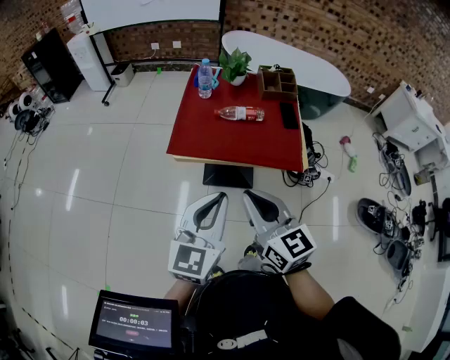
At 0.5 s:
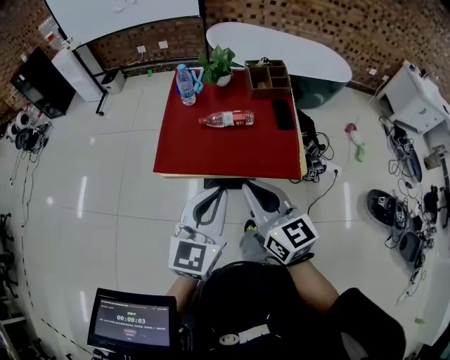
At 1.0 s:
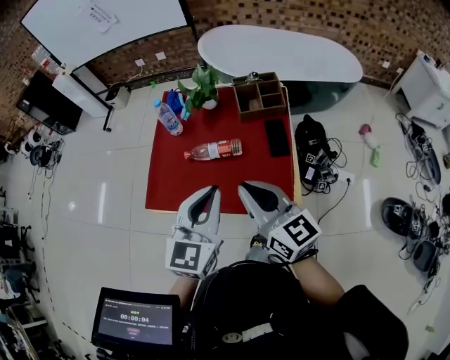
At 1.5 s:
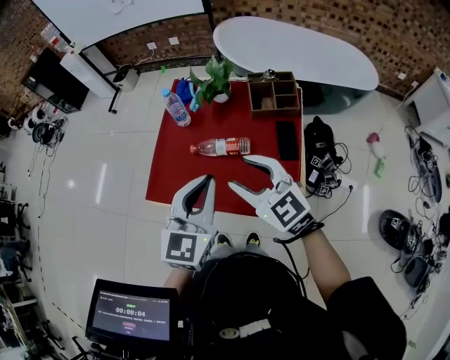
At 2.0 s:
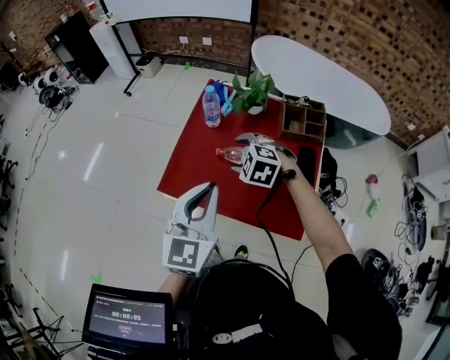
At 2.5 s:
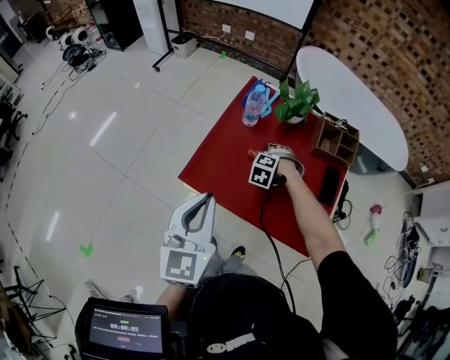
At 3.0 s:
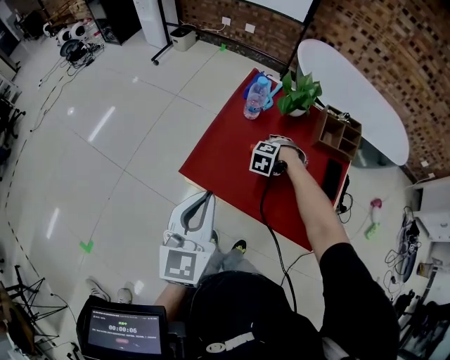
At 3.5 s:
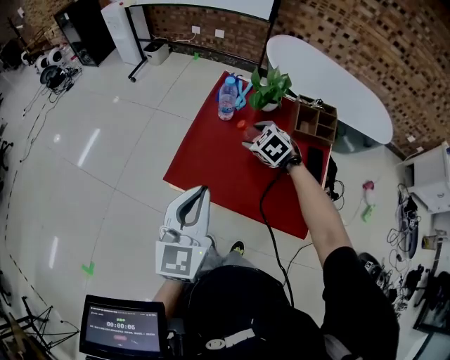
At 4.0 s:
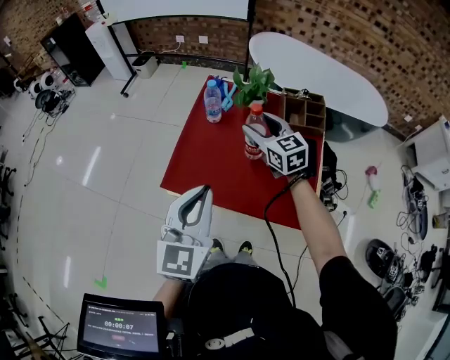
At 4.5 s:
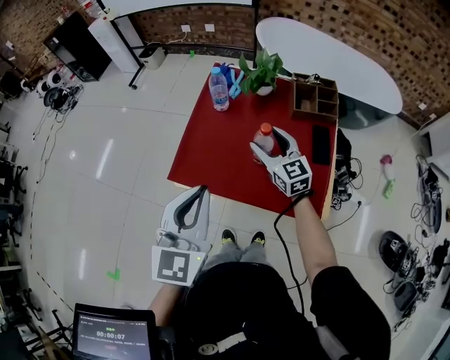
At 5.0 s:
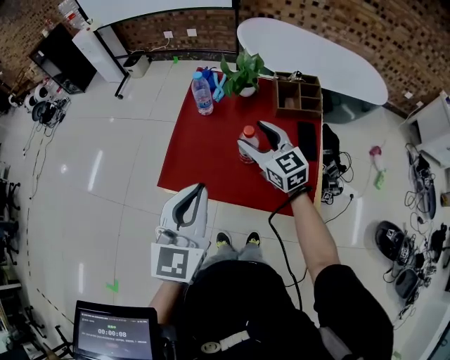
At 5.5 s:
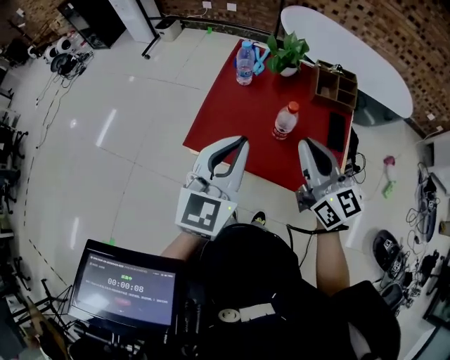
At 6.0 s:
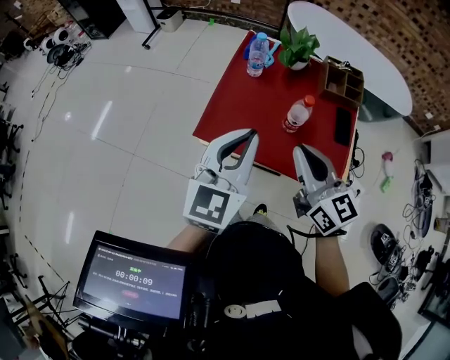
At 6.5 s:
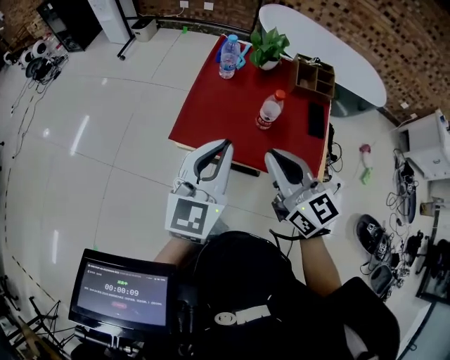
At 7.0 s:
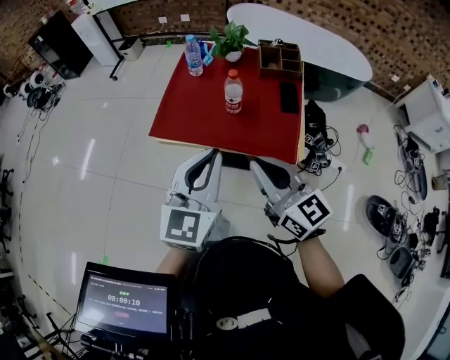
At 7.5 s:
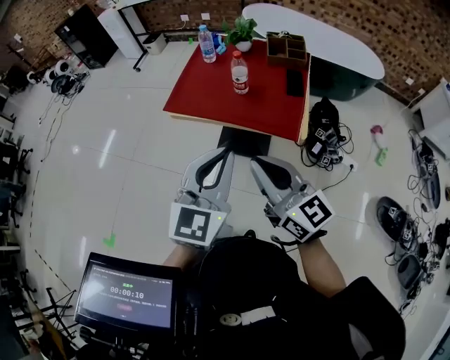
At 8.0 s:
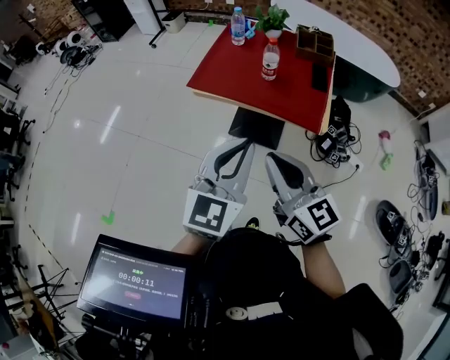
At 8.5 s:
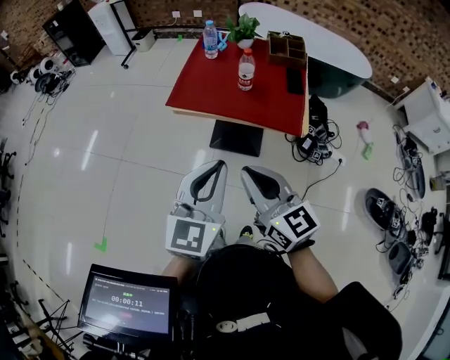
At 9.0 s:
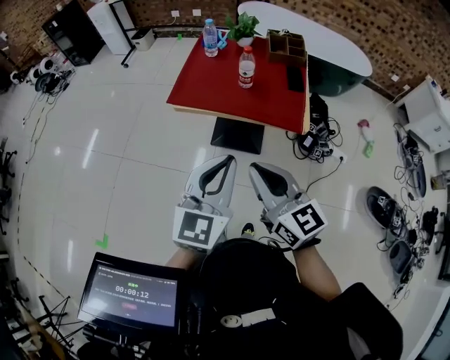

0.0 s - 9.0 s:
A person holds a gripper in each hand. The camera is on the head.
0.0 s - 2.0 s: The left gripper is displaced forward and to the right by approximately 25 cm, while the right gripper goes some 40 cm forward and downward, points its fingers roughly 50 degrees further downward, and opens up.
2.0 s - 4.5 s: The right gripper goes up and down, about 25 cm each way, reversing 2 times, and tilts its fingers approximately 40 degrees upward.
4.5 s - 7.0 s: The left gripper shifts approximately 15 cm backward and to the right; the right gripper is displaced backward and upward by some 35 cm, and closes up.
7.0 s - 9.0 s: Both grippers travel together backward, about 20 cm.

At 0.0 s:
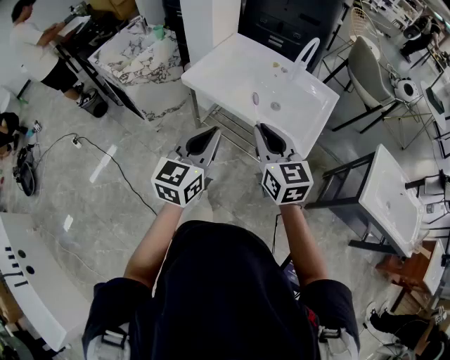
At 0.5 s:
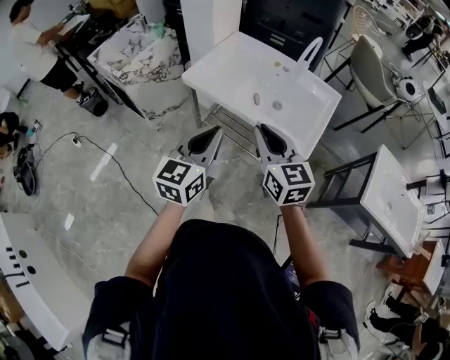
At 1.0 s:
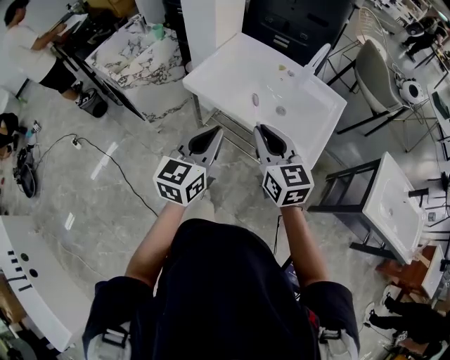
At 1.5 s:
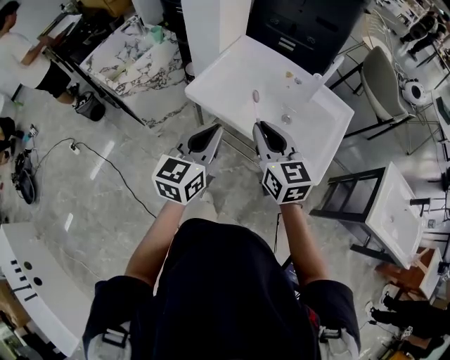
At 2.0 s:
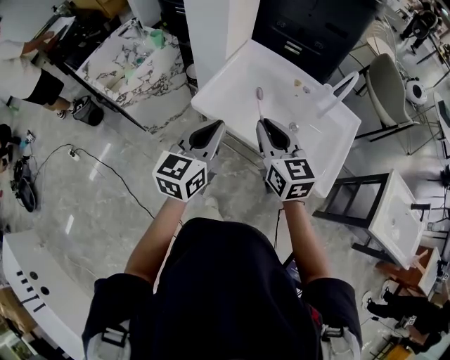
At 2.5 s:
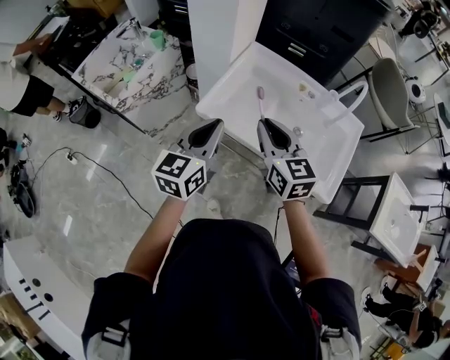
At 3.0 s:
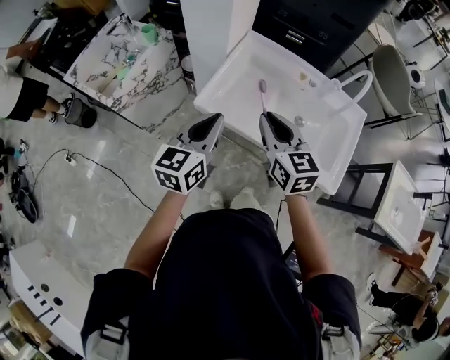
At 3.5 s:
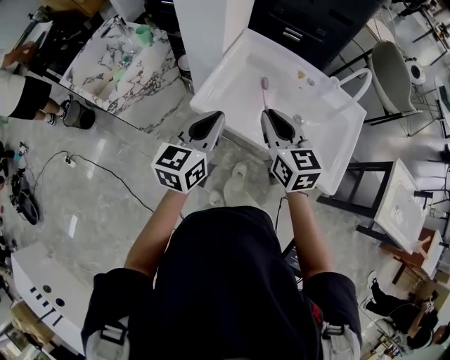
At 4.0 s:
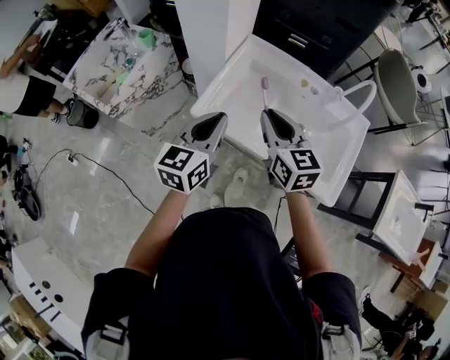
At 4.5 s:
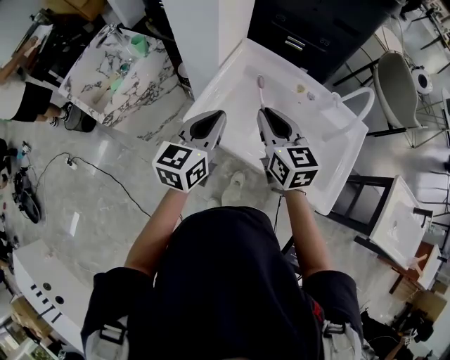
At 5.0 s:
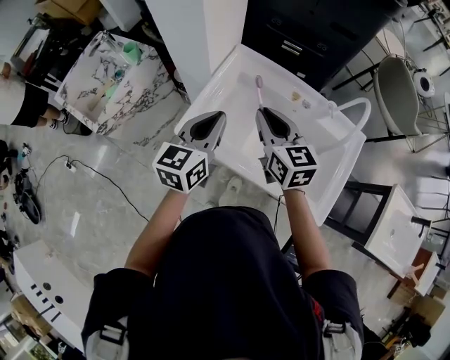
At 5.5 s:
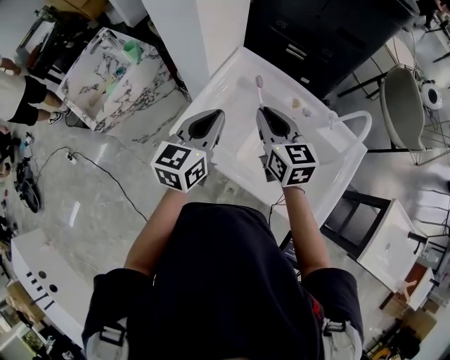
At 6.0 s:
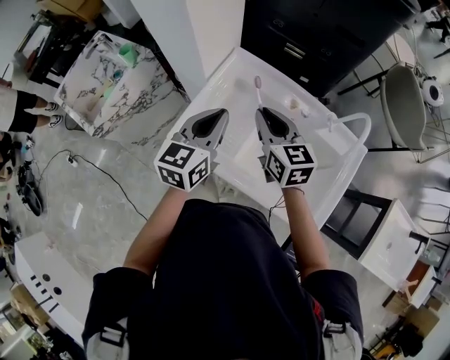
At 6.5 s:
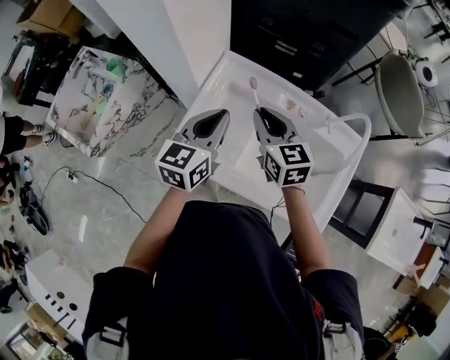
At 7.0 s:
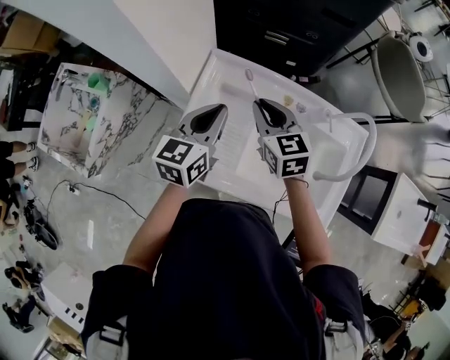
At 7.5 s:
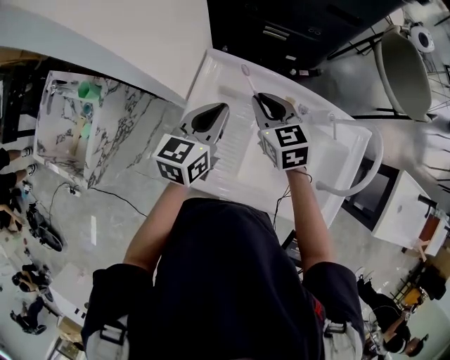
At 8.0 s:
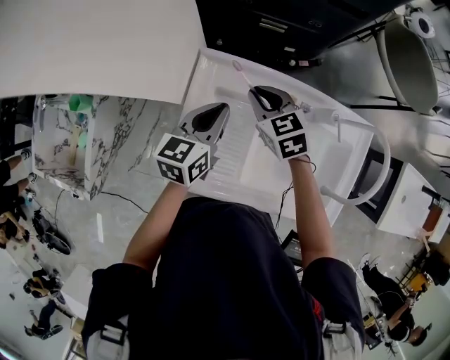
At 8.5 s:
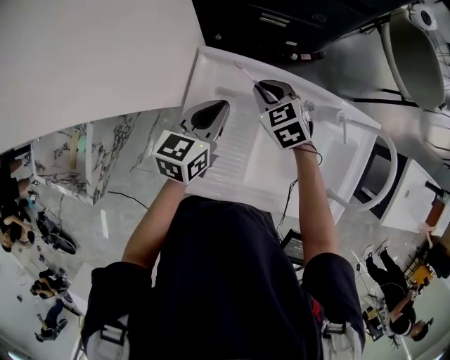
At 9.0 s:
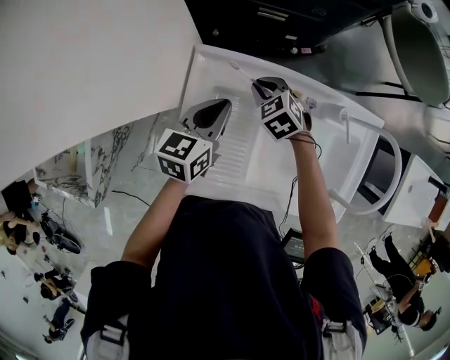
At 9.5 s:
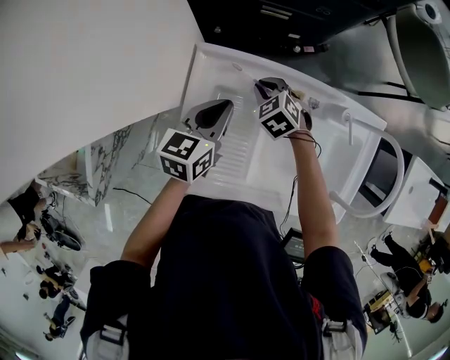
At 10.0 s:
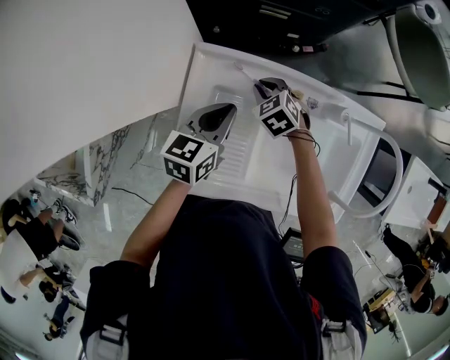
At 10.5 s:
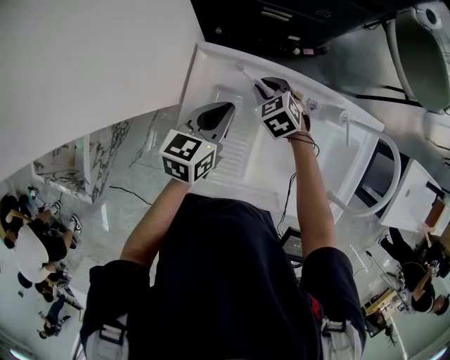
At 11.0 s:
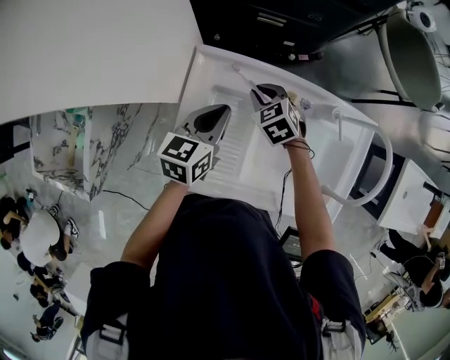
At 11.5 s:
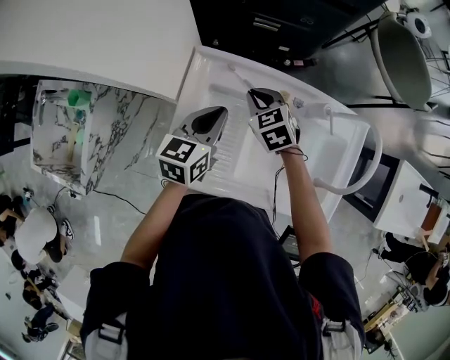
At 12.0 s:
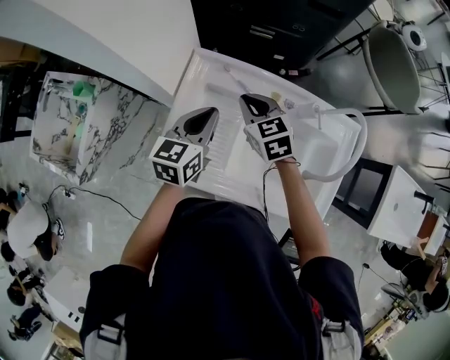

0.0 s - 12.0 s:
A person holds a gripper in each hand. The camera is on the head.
0.0 s - 2.0 s: Both grippers move forward and to the left, some 25 cm.
2.0 s - 4.0 s: The grippers both shift forward by some 10 cm.
4.0 s - 6.0 s: Both grippers move forward and to the right, some 15 cm.
6.0 s - 8.0 s: Both grippers travel together forward and downward, about 20 cm. The right gripper changes its angle by roughly 20 degrees, while the left gripper changes its angle by some 20 degrees.
8.0 s - 10.0 s: The right gripper goes some 10 cm downward, and changes its angle by some 20 degrees.
10.0 s - 12.0 s: The left gripper heads upward and backward, covering about 10 cm. The right gripper heads upward and backward, covering some 15 cm, and swivels about 30 degrees.

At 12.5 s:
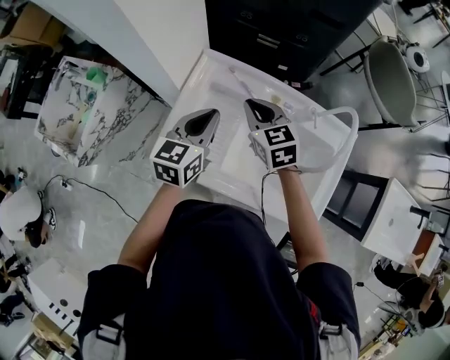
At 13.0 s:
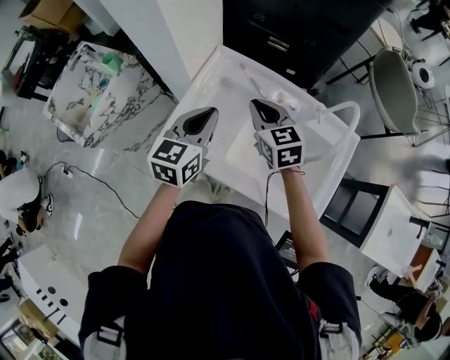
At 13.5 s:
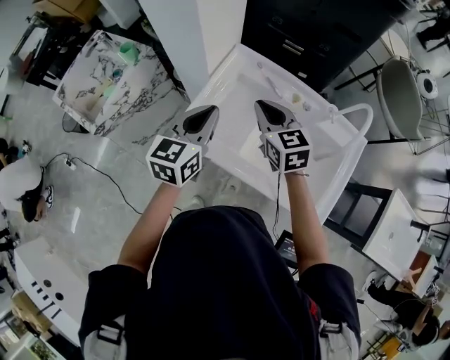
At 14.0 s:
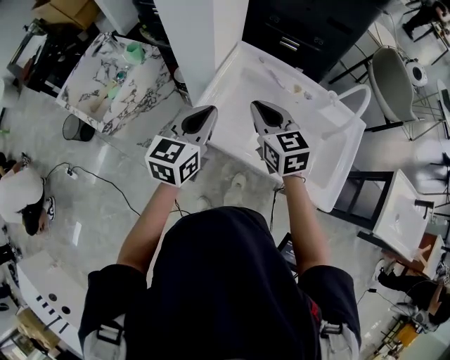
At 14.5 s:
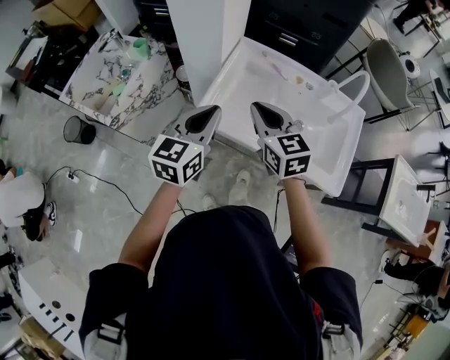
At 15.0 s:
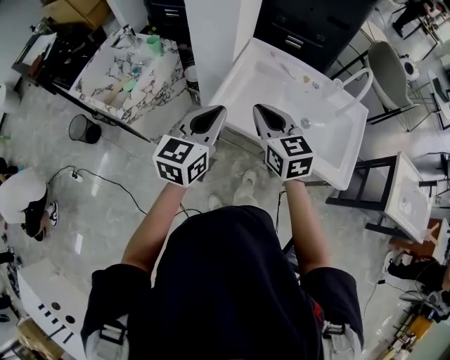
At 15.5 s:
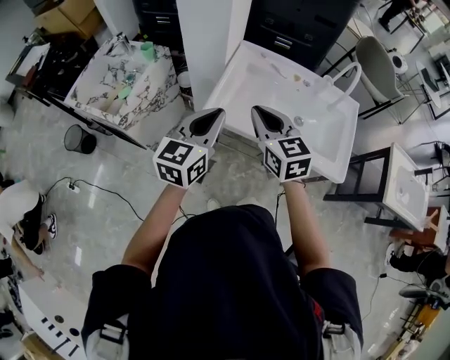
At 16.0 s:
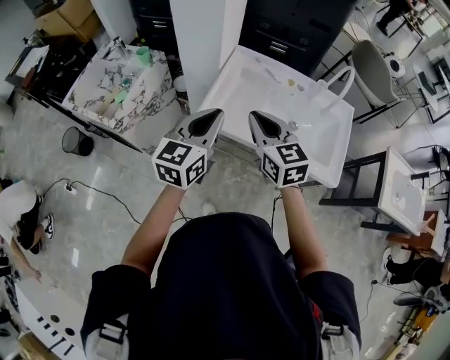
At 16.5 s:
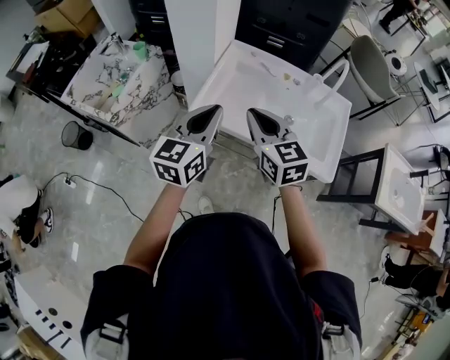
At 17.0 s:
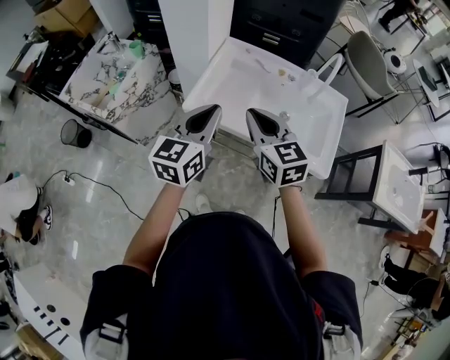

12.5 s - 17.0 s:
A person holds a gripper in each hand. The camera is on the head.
12.5 s - 14.5 s: The left gripper heads backward and to the left, covering roughly 25 cm. The right gripper goes some 25 cm backward, to the left and upward.
14.5 s - 17.0 s: Both grippers move backward, some 10 cm.

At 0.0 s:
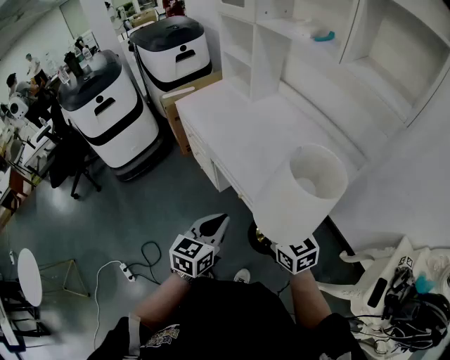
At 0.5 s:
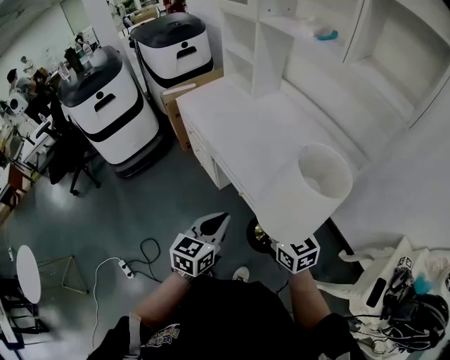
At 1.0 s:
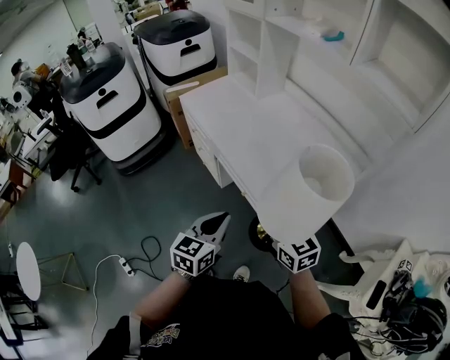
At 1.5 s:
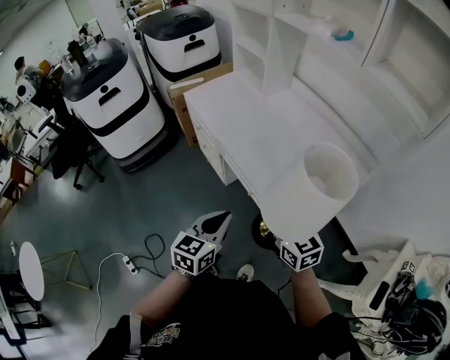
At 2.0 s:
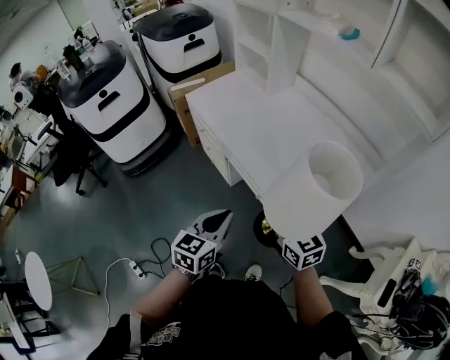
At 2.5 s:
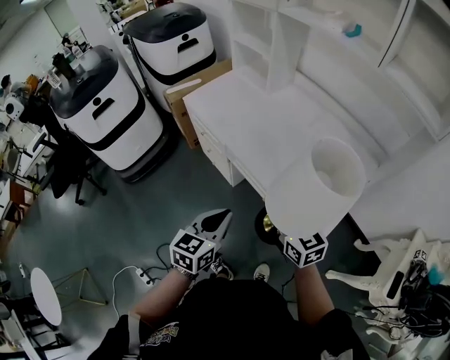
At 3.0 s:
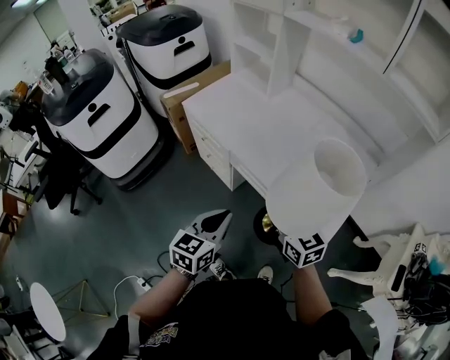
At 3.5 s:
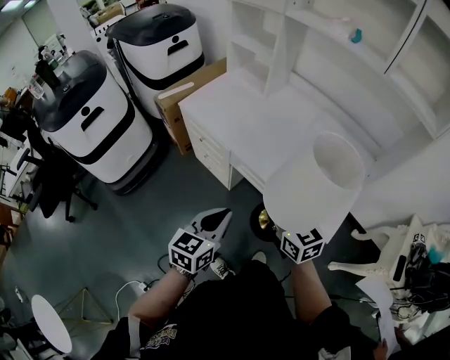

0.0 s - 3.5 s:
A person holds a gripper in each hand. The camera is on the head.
0.0 s - 2.0 s: The left gripper goes some 5 cm to the left; the right gripper moves forward and to the left, some 10 cm.
2.0 s - 3.5 s: Both grippers move to the left and forward, roughly 15 cm.
